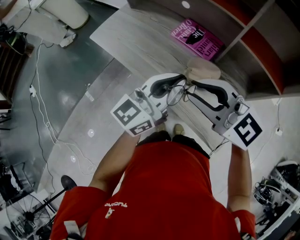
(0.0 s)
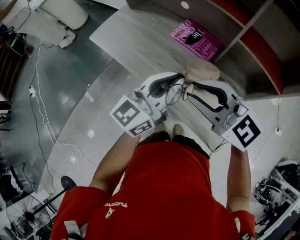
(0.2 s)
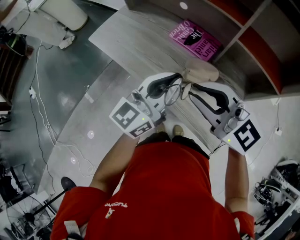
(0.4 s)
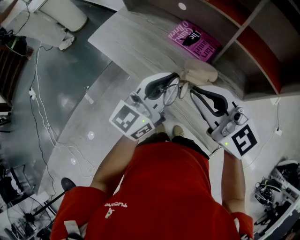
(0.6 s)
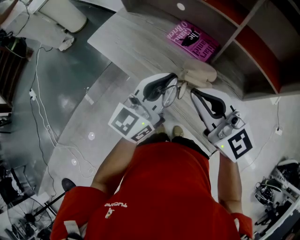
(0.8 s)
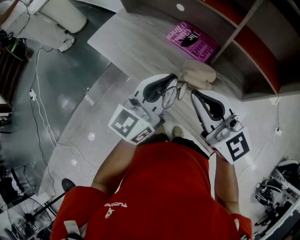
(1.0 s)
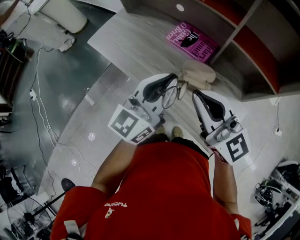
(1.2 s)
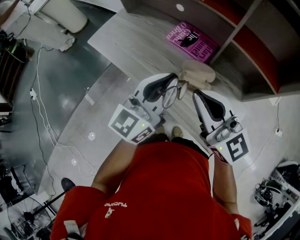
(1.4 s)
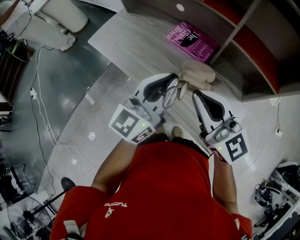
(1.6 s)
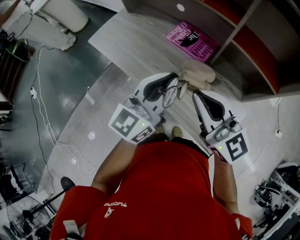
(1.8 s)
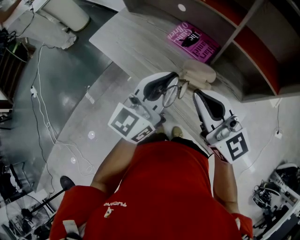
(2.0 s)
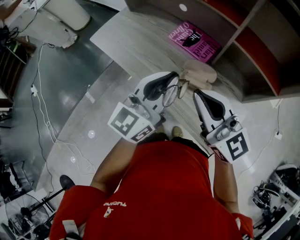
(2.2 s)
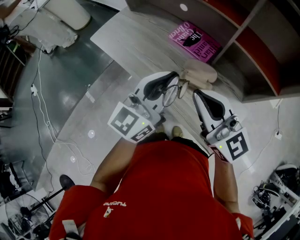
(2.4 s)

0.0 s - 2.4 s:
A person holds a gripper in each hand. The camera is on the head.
0.0 s - 1.2 s: The right gripper swivels about 20 degrees, and closes its fingers.
1.2 s - 2.4 s: Both grippers stay put.

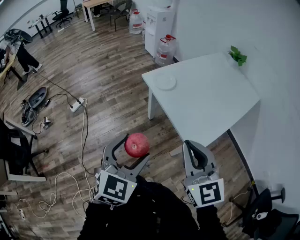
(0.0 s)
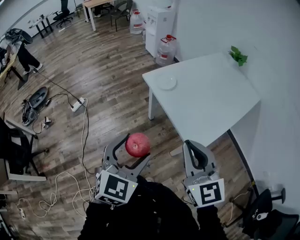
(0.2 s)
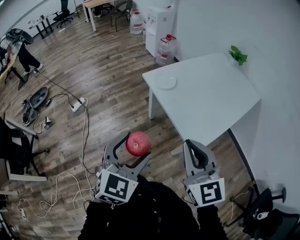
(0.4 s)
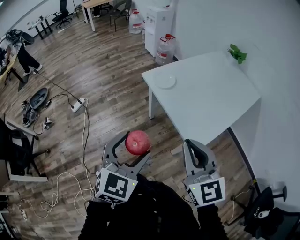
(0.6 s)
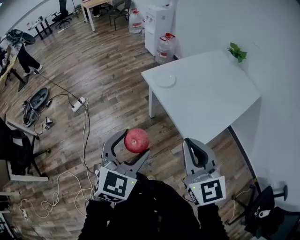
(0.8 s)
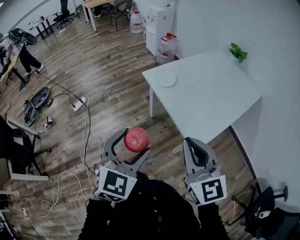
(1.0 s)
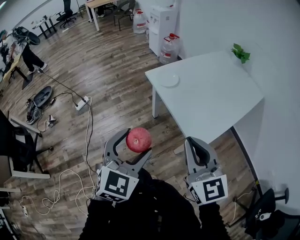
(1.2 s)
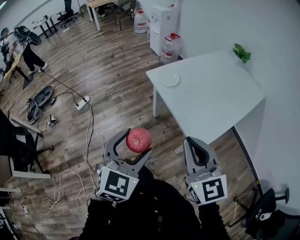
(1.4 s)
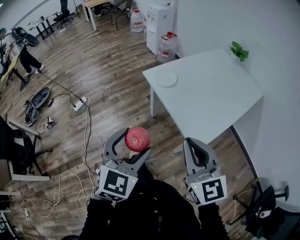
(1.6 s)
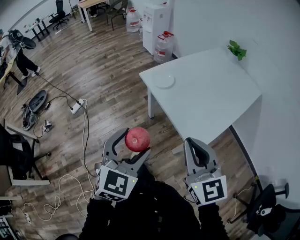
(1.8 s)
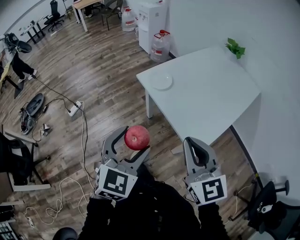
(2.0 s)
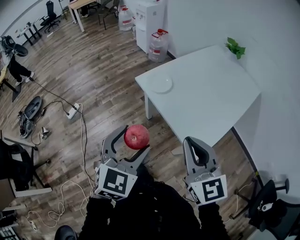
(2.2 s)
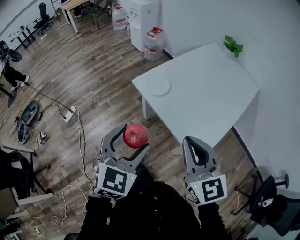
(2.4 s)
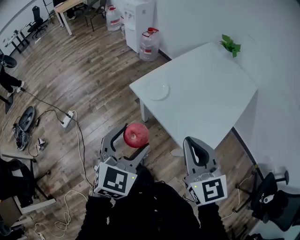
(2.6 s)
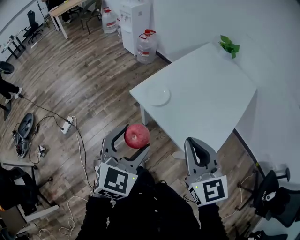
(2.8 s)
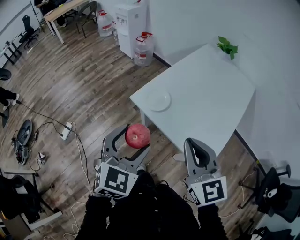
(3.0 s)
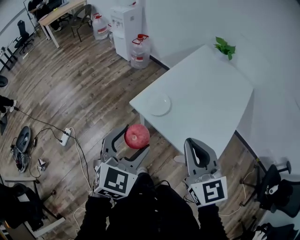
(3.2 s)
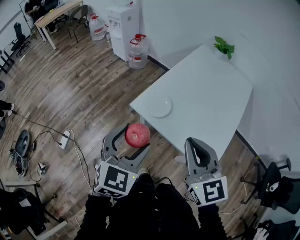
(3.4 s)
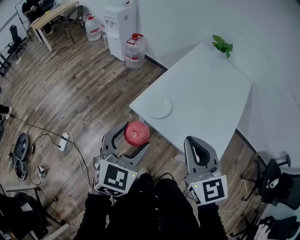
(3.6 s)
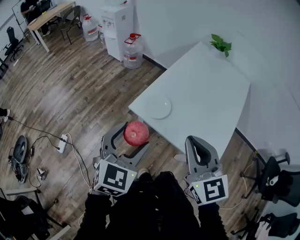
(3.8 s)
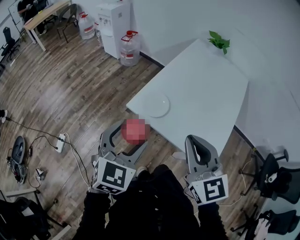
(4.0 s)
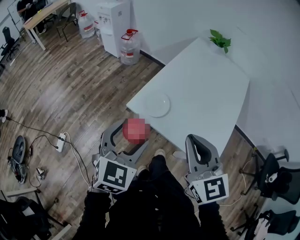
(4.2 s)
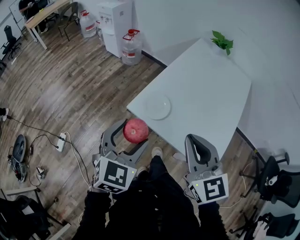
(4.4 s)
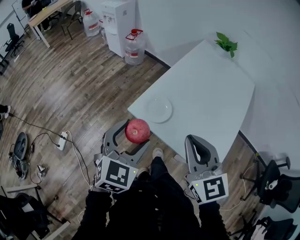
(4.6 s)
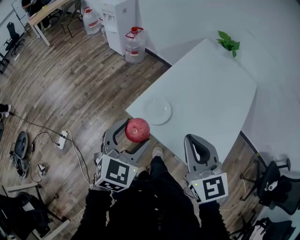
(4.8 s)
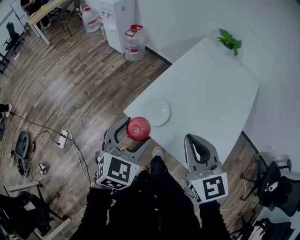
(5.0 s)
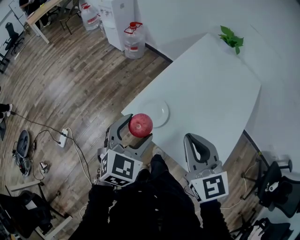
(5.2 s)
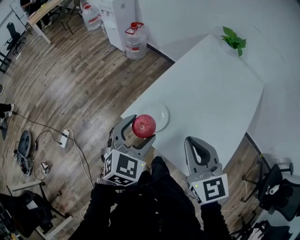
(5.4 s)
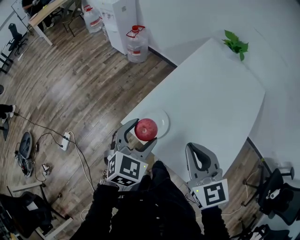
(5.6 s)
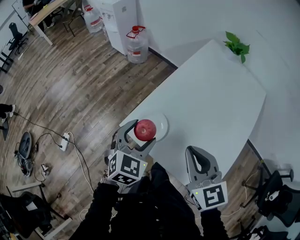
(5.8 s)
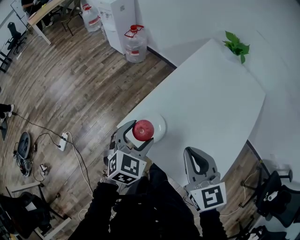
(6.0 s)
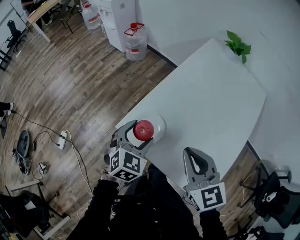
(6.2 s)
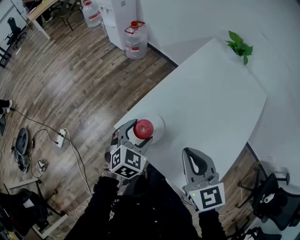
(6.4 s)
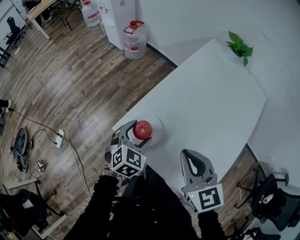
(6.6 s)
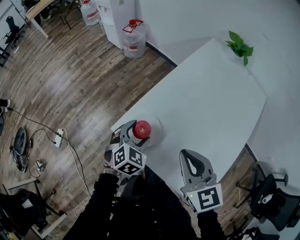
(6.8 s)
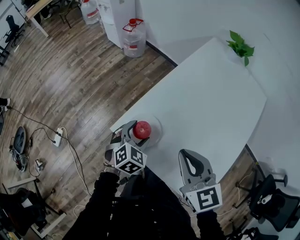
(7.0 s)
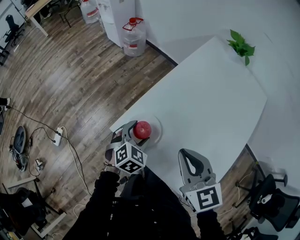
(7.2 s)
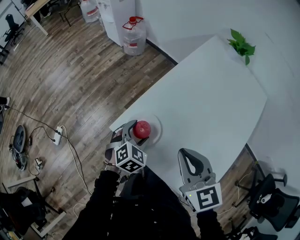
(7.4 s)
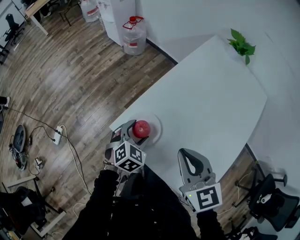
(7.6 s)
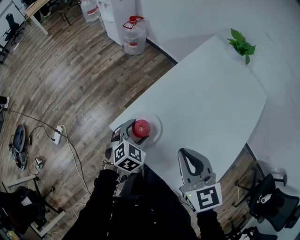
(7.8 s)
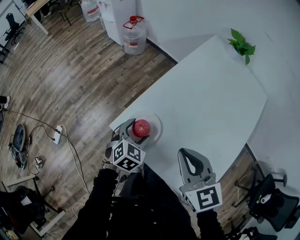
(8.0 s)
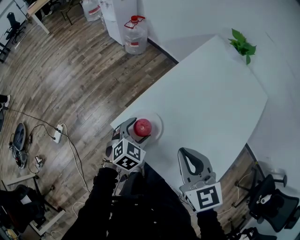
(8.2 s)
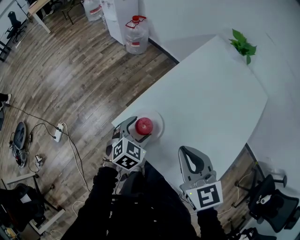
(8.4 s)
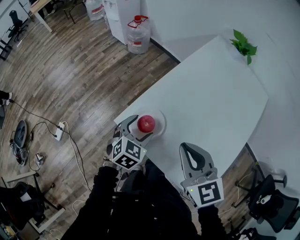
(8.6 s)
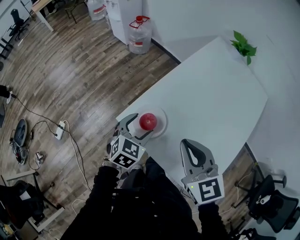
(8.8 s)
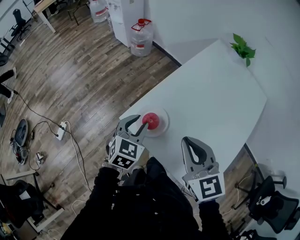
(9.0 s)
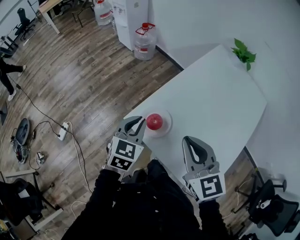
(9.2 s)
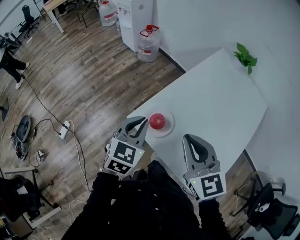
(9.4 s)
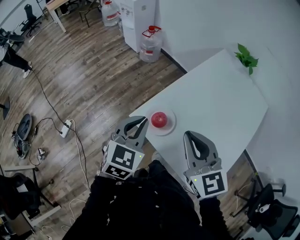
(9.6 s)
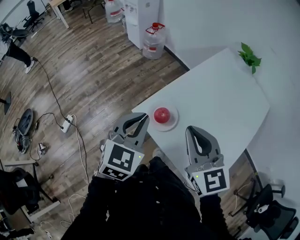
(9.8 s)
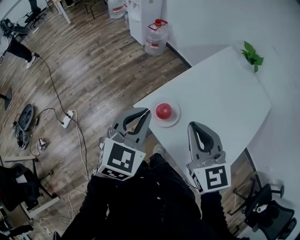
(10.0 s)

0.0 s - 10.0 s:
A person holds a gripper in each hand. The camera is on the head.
0.0 s - 1.4 s: The two grippers keep their place.
1.4 s - 2.8 s: The two grippers go about 20 cm forward.
2.8 s - 4.2 s: Both grippers move forward and to the left, roughly 10 cm.
4.2 s - 5.8 s: The right gripper is displaced forward and downward by approximately 15 cm. Meanwhile the left gripper goes roughly 20 cm forward, downward and to the right.
5.8 s - 7.2 s: The right gripper ends up roughly 5 cm from where it was, while the left gripper heads downward, covering roughly 15 cm.
7.2 s - 8.6 s: The grippers make only small movements.
8.6 s - 10.0 s: The left gripper is displaced upward by roughly 20 cm, swivels roughly 20 degrees, and closes its fingers. The right gripper is displaced upward and to the left by some 10 cm.

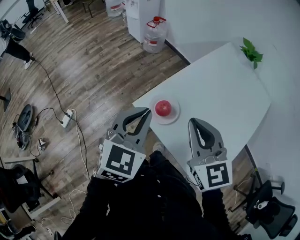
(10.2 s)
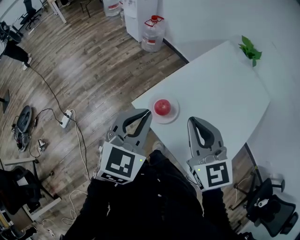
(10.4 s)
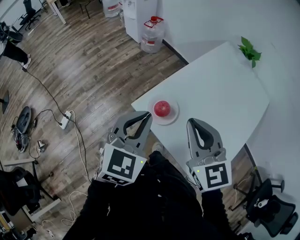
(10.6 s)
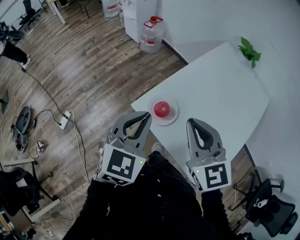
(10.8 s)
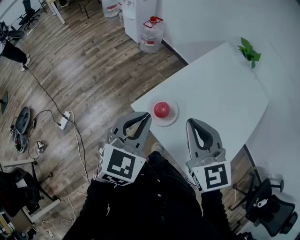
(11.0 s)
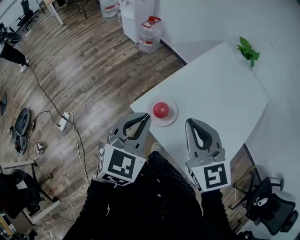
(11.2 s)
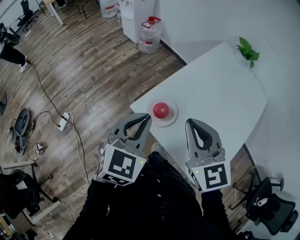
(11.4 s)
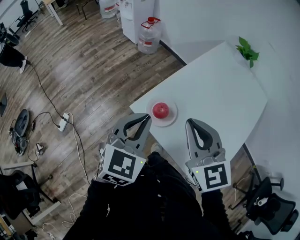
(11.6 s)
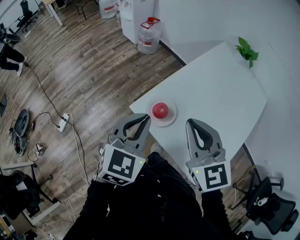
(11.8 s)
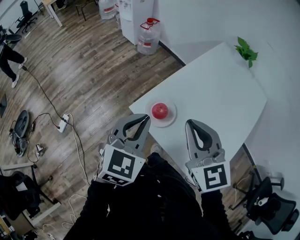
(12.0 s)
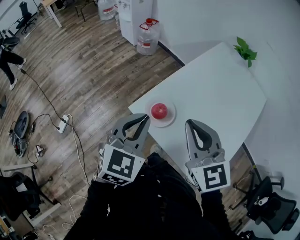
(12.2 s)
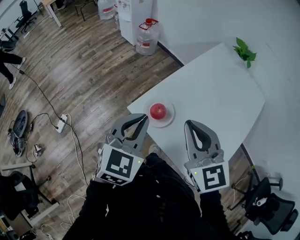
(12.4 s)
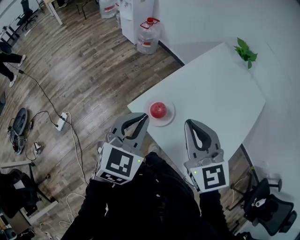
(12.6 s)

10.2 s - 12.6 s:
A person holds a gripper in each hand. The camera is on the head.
10.2 s - 11.4 s: There are only small adjustments of the grippers.
11.4 s - 12.6 s: Neither gripper changes place.

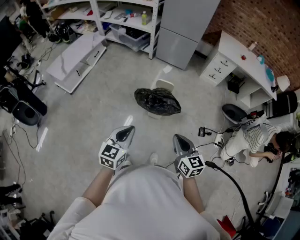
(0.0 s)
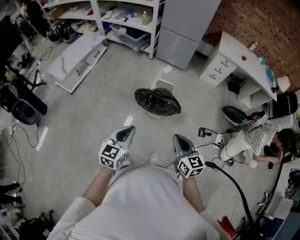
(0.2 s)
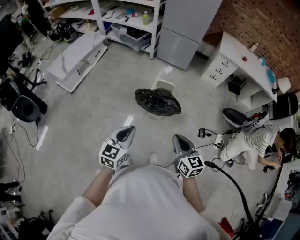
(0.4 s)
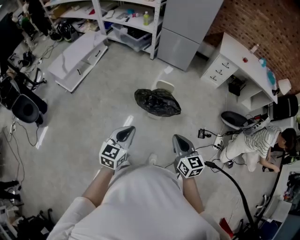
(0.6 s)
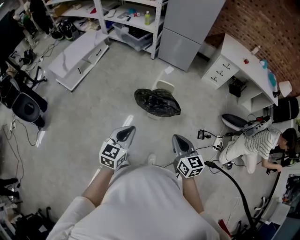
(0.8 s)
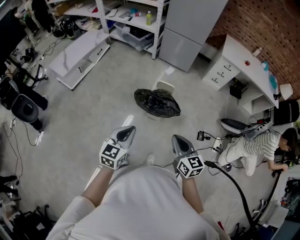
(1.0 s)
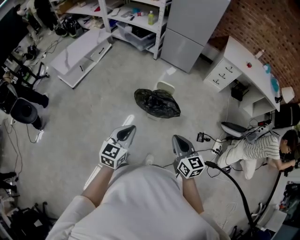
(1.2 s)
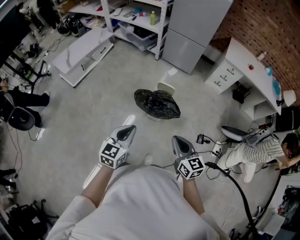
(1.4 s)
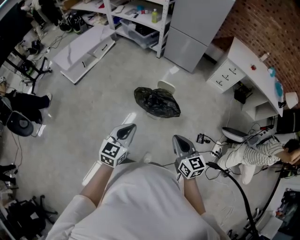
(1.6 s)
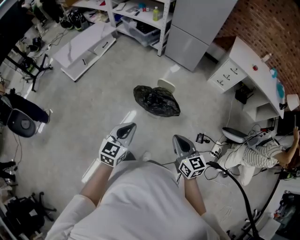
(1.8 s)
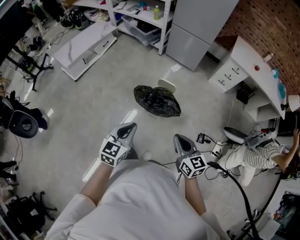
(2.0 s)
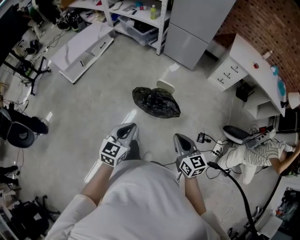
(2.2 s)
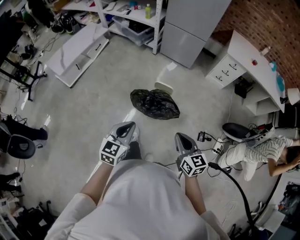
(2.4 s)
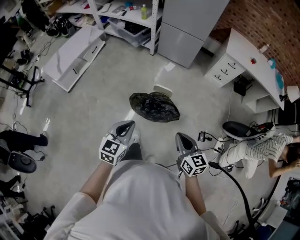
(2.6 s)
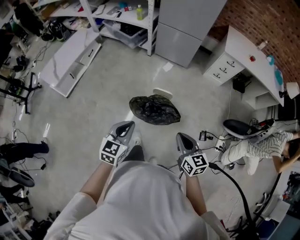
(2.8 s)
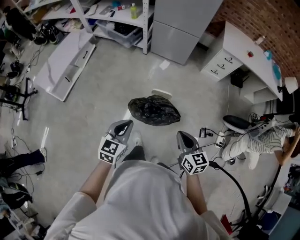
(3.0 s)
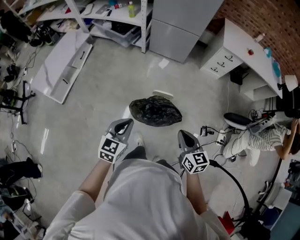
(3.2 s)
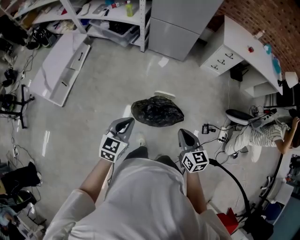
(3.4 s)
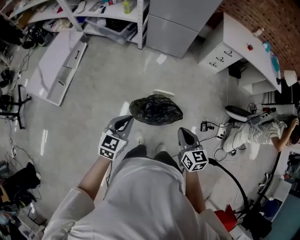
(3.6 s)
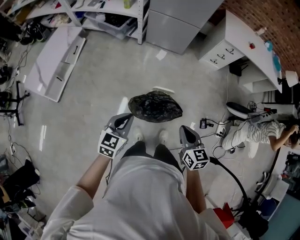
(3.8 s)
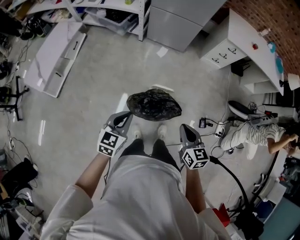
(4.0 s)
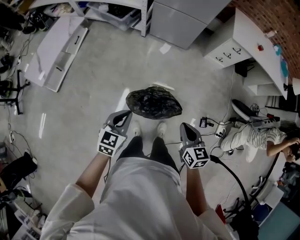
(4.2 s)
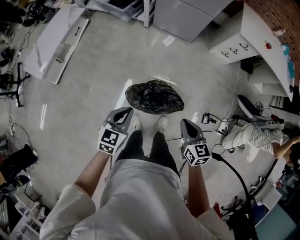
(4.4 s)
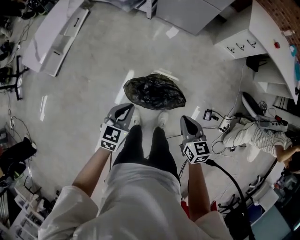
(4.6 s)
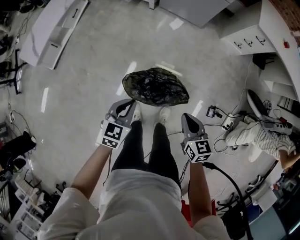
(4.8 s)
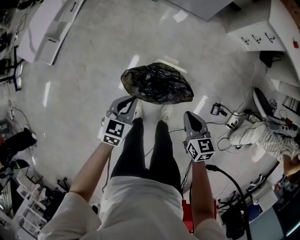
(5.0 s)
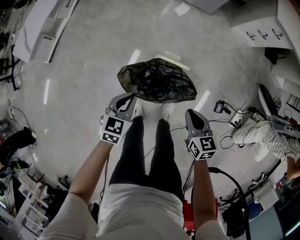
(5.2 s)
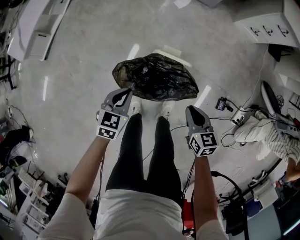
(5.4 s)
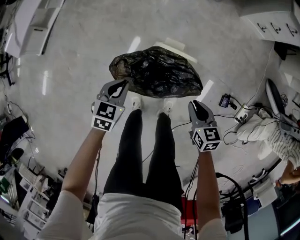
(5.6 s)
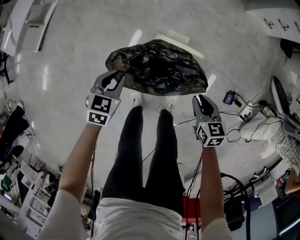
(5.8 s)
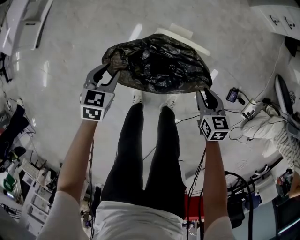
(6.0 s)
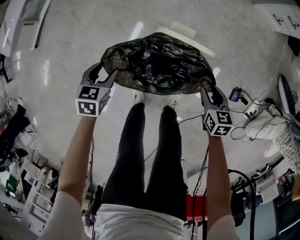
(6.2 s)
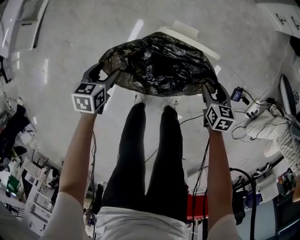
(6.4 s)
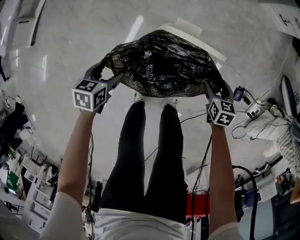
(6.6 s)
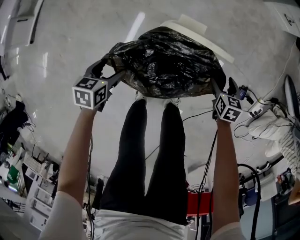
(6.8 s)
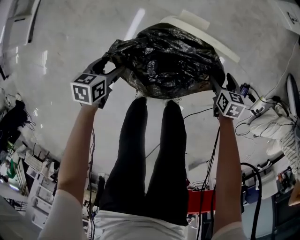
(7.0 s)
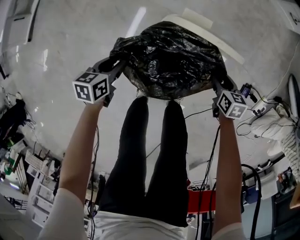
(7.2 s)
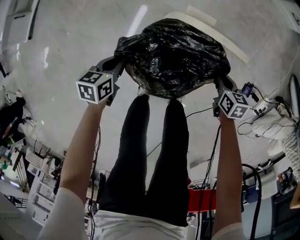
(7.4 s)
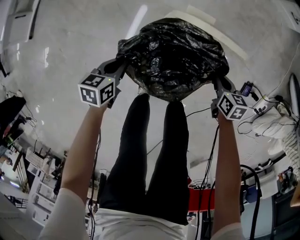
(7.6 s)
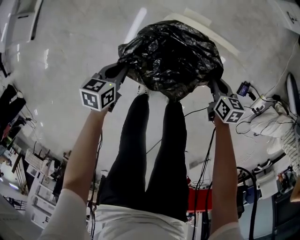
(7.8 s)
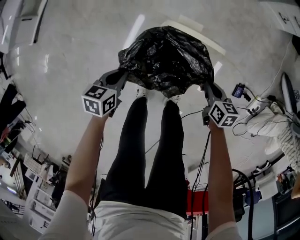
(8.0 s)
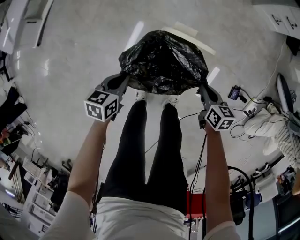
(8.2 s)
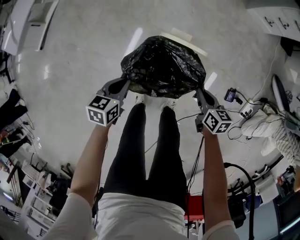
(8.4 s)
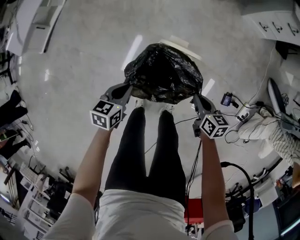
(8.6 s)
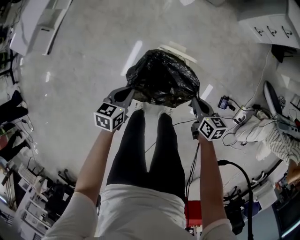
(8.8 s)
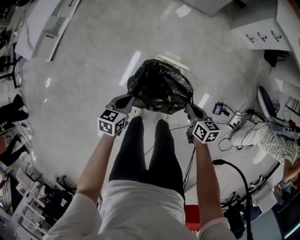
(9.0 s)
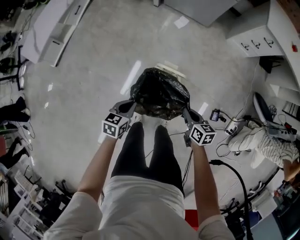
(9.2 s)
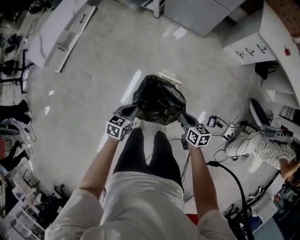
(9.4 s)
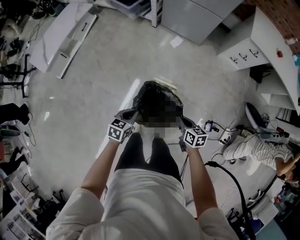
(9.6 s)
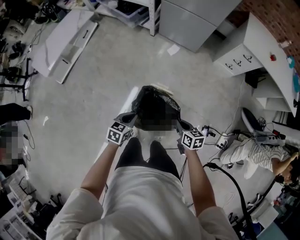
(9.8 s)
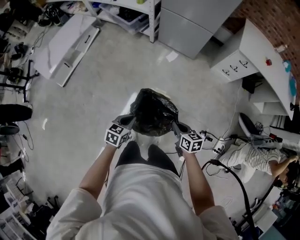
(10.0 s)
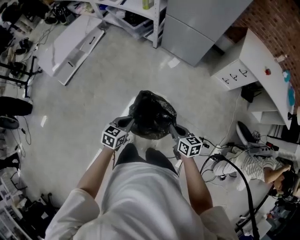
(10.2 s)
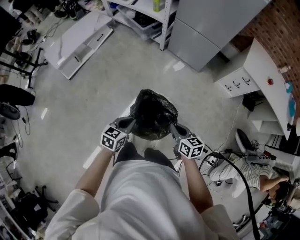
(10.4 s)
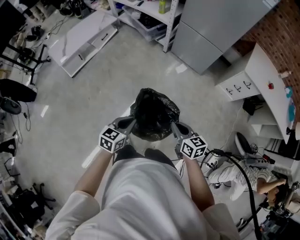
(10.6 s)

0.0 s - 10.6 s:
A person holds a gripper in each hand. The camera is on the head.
0.0 s - 1.6 s: The right gripper travels to the right and forward by approximately 10 cm, while the left gripper shifts some 10 cm to the right.
1.6 s - 3.0 s: Both grippers travel together forward, about 20 cm.
3.0 s - 4.6 s: The right gripper travels forward and downward by roughly 20 cm, while the left gripper travels downward and forward by some 20 cm.
4.6 s - 6.0 s: Both grippers travel together downward, roughly 40 cm. The left gripper swivels about 20 degrees, and opens.
6.0 s - 7.6 s: The two grippers go some 15 cm downward. The right gripper opens and closes again, while the left gripper changes its angle by about 30 degrees, and closes its fingers.
7.6 s - 9.0 s: The two grippers go some 30 cm upward.
9.0 s - 10.6 s: The two grippers go some 30 cm upward. The right gripper changes its angle by approximately 30 degrees.
